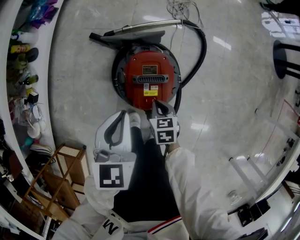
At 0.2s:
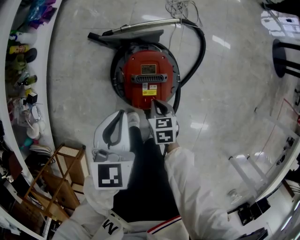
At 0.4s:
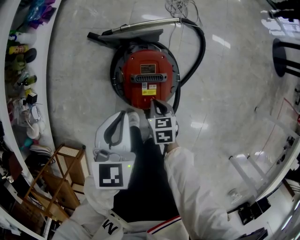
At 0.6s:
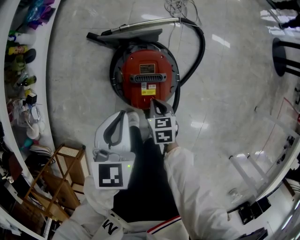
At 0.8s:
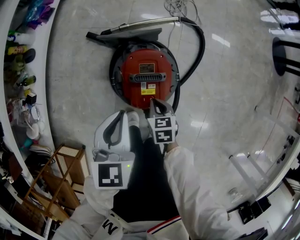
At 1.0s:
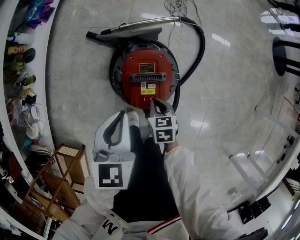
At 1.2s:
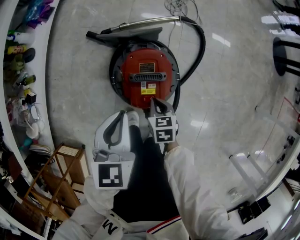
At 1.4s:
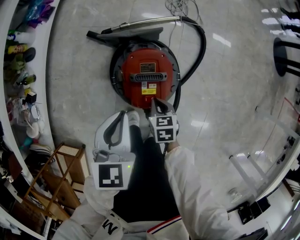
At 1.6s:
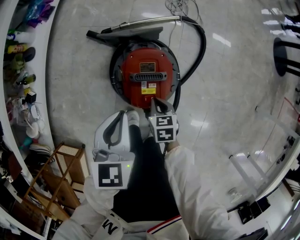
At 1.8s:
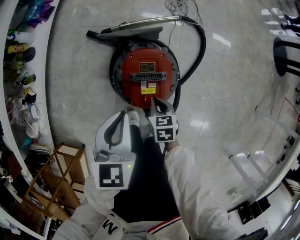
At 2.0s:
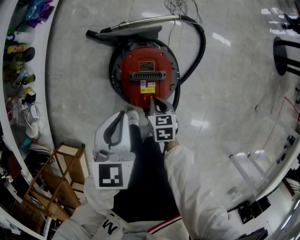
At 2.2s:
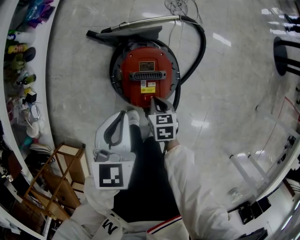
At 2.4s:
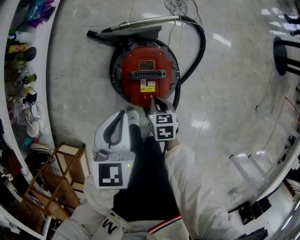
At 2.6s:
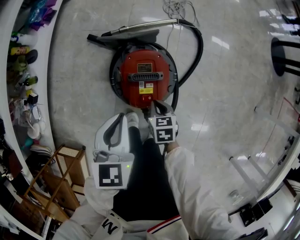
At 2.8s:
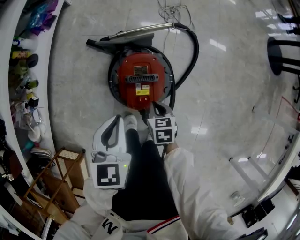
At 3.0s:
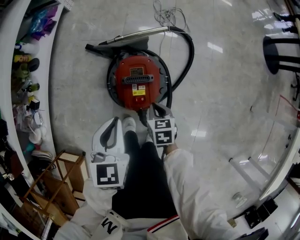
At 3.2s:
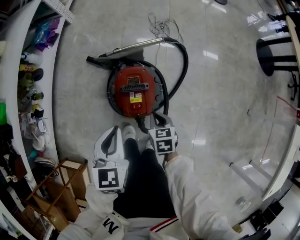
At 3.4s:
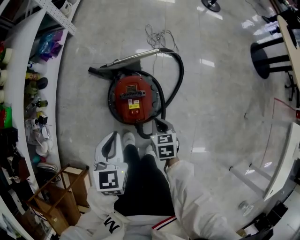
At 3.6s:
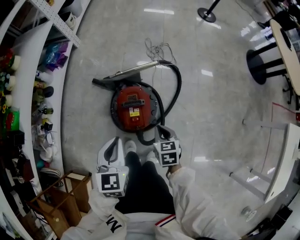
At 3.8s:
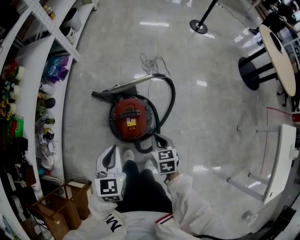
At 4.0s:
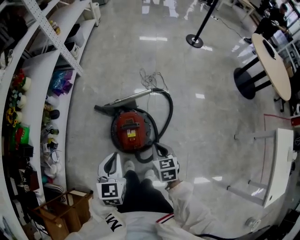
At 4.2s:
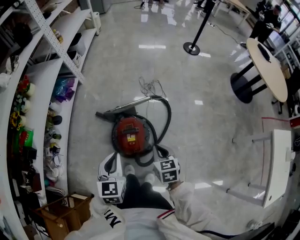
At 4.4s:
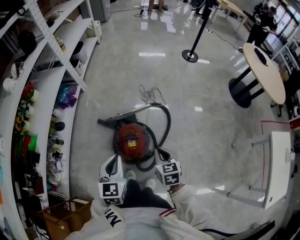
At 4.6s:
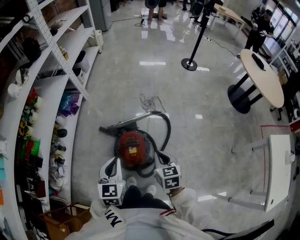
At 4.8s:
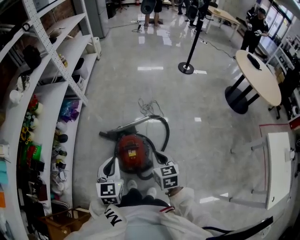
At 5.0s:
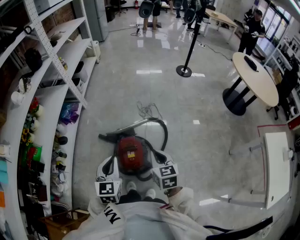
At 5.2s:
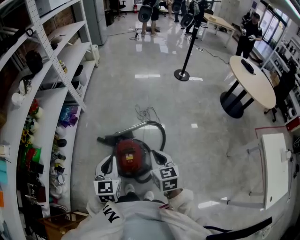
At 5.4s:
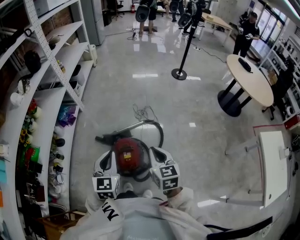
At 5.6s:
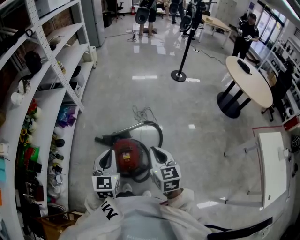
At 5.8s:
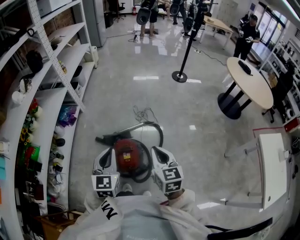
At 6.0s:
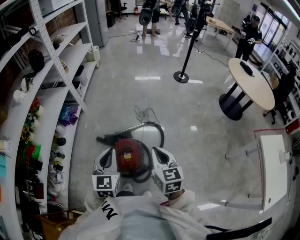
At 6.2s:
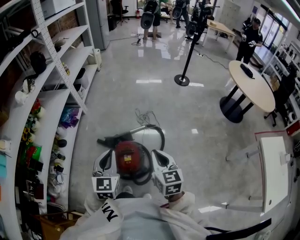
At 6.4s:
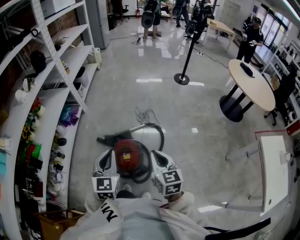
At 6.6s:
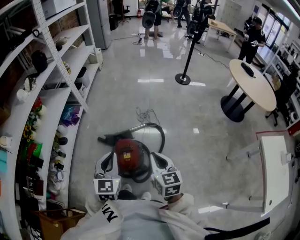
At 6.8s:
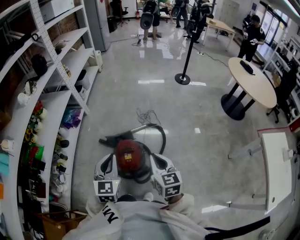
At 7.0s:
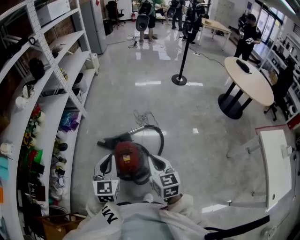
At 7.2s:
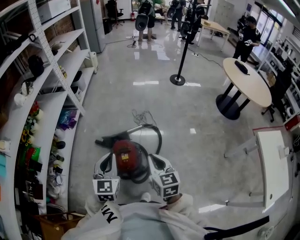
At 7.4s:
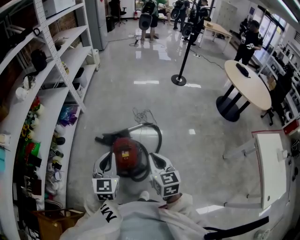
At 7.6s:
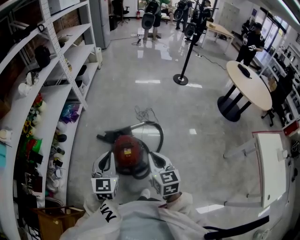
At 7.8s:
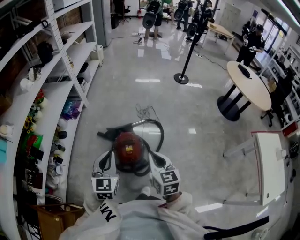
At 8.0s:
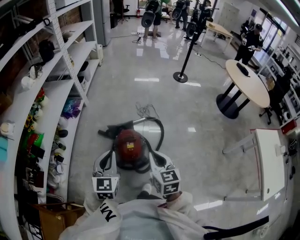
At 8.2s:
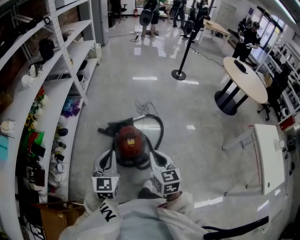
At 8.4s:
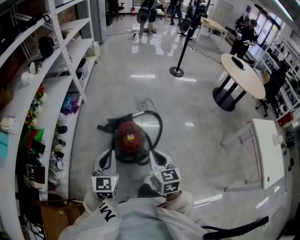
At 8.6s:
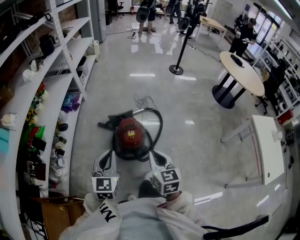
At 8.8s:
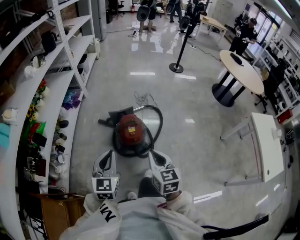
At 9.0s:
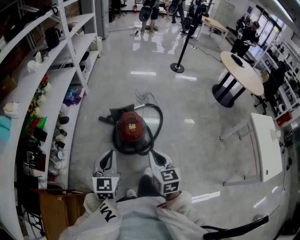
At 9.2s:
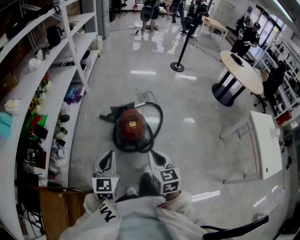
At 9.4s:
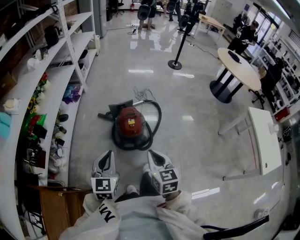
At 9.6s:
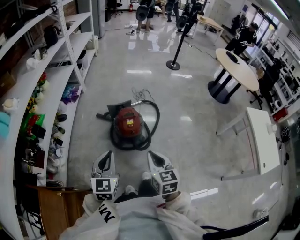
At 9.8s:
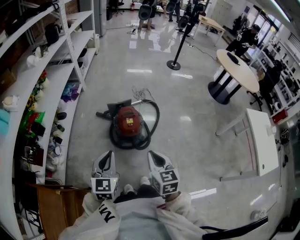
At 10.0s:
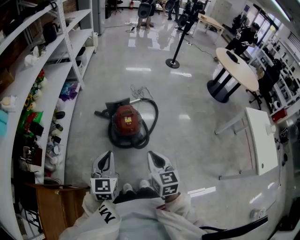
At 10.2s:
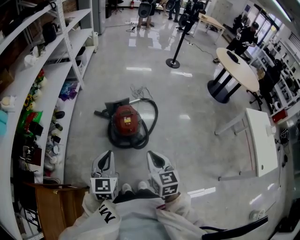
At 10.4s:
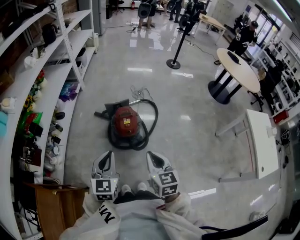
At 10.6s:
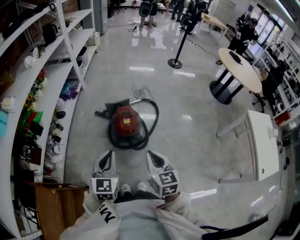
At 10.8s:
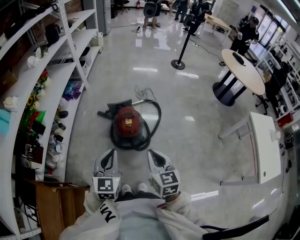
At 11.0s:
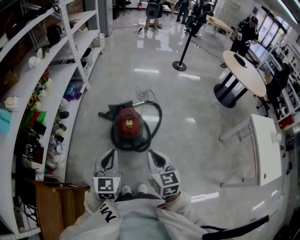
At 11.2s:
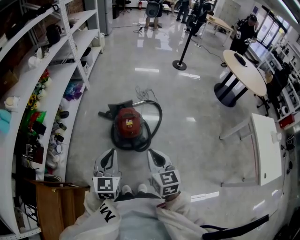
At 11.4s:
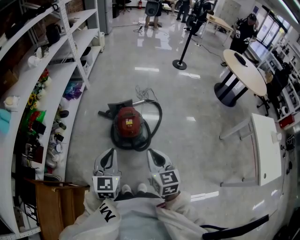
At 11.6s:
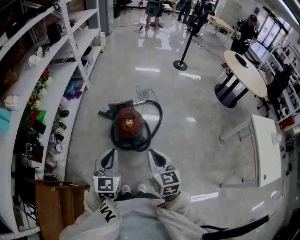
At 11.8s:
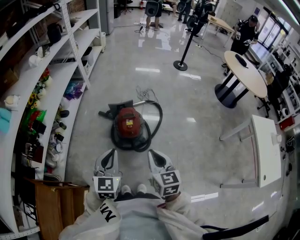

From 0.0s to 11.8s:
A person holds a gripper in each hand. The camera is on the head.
From 0.0s to 1.4s: Neither gripper changes place.
From 1.4s to 3.0s: The right gripper moves about 5 cm.
From 3.0s to 4.4s: The left gripper goes some 20 cm upward. Meanwhile the right gripper heads upward, covering approximately 30 cm.
From 4.4s to 6.0s: The right gripper heads upward, covering some 15 cm; the left gripper goes roughly 10 cm upward.
From 6.0s to 7.4s: The right gripper heads backward, covering roughly 5 cm.
From 7.4s to 8.8s: The two grippers go about 20 cm backward and to the left.
From 8.8s to 10.4s: The grippers both shift backward by some 5 cm.
From 10.4s to 11.8s: The grippers make only small movements.

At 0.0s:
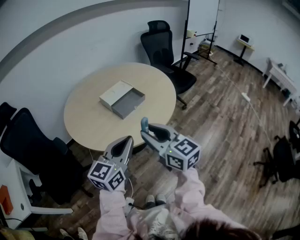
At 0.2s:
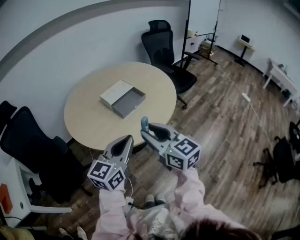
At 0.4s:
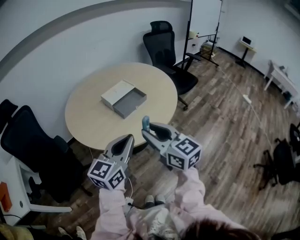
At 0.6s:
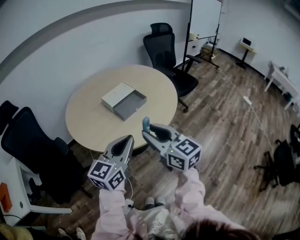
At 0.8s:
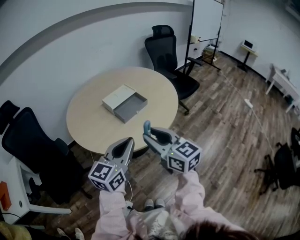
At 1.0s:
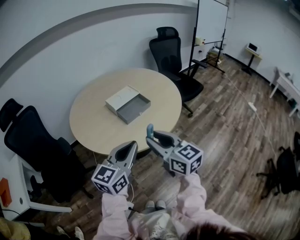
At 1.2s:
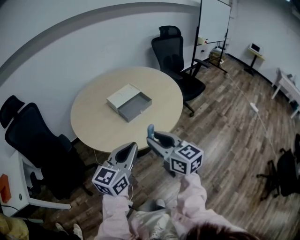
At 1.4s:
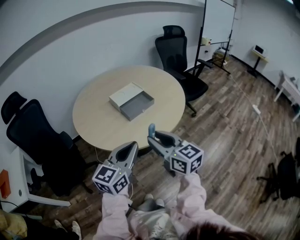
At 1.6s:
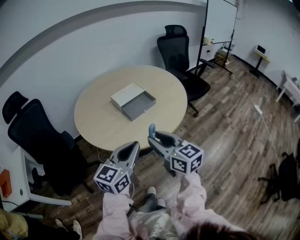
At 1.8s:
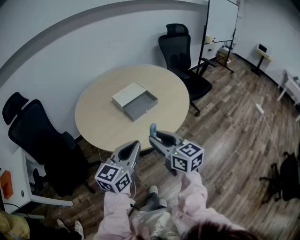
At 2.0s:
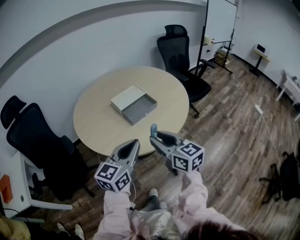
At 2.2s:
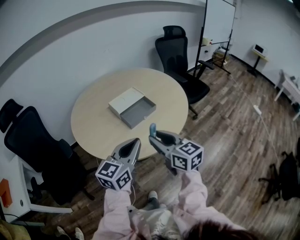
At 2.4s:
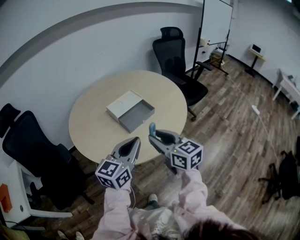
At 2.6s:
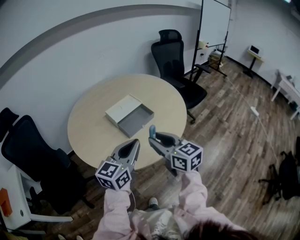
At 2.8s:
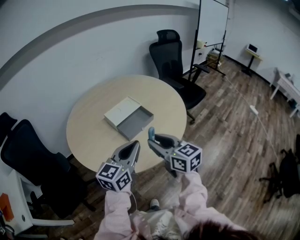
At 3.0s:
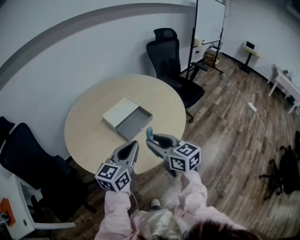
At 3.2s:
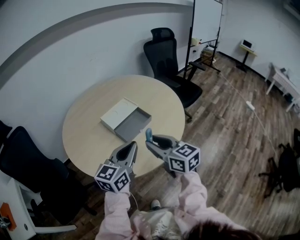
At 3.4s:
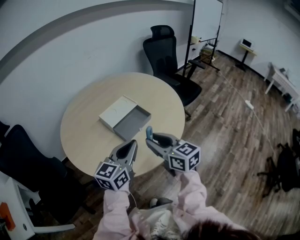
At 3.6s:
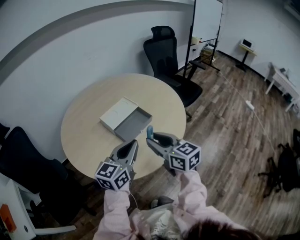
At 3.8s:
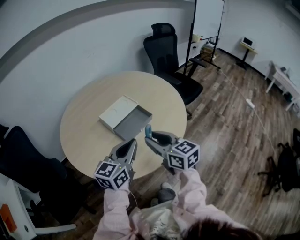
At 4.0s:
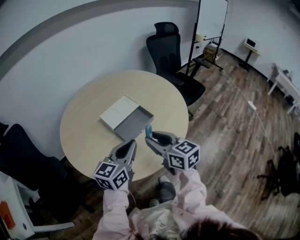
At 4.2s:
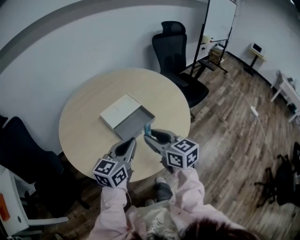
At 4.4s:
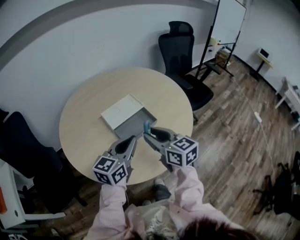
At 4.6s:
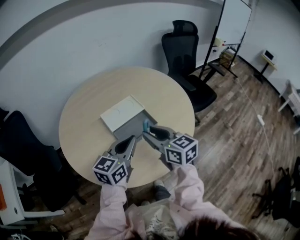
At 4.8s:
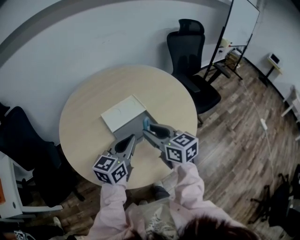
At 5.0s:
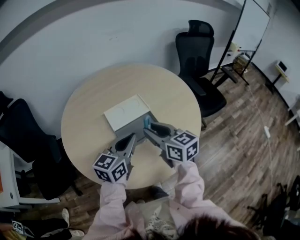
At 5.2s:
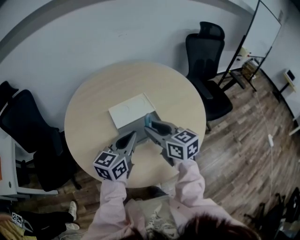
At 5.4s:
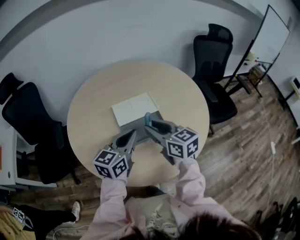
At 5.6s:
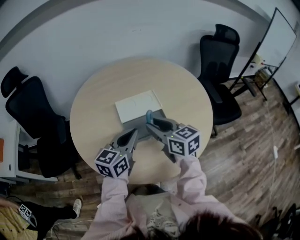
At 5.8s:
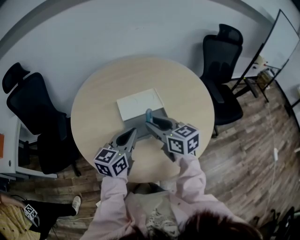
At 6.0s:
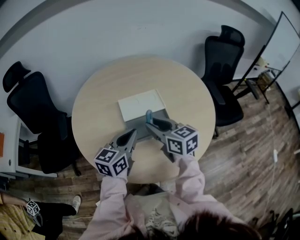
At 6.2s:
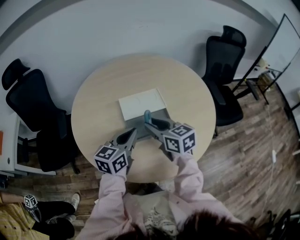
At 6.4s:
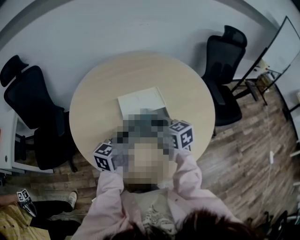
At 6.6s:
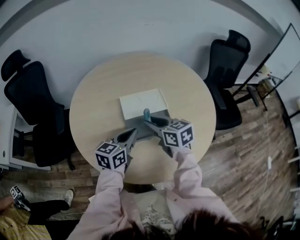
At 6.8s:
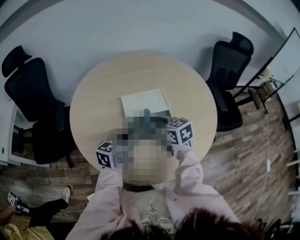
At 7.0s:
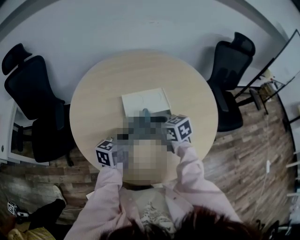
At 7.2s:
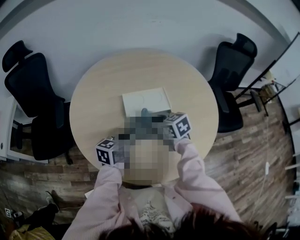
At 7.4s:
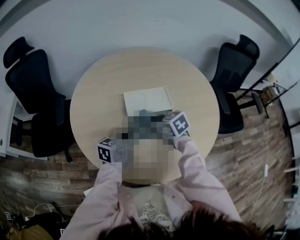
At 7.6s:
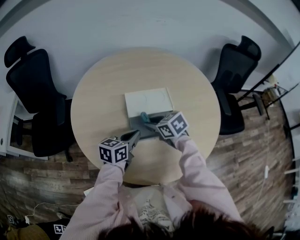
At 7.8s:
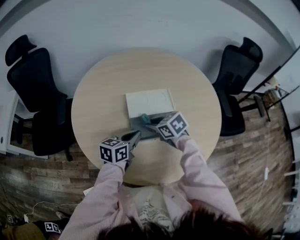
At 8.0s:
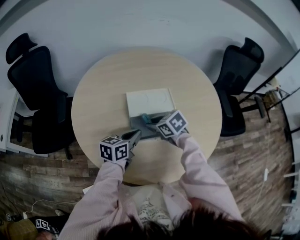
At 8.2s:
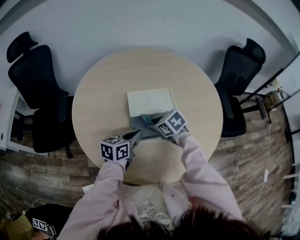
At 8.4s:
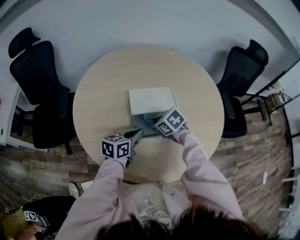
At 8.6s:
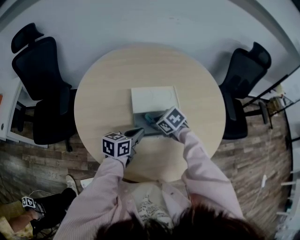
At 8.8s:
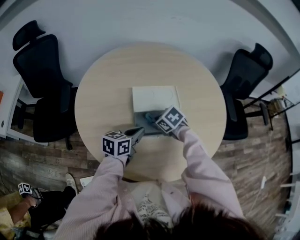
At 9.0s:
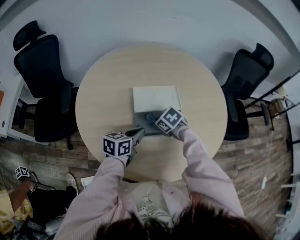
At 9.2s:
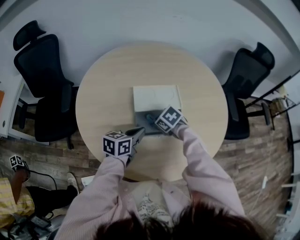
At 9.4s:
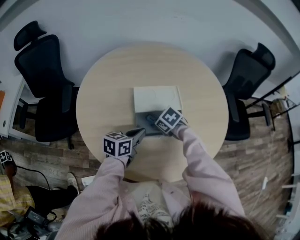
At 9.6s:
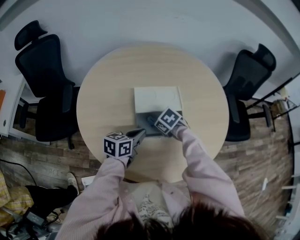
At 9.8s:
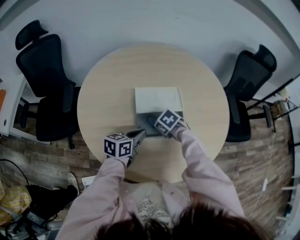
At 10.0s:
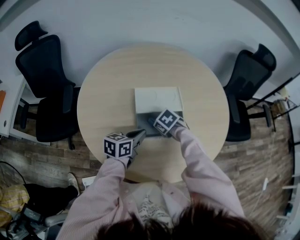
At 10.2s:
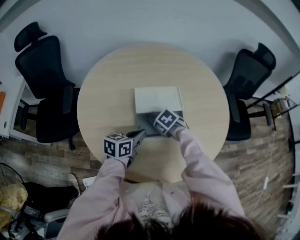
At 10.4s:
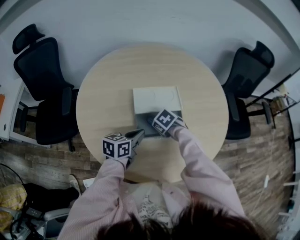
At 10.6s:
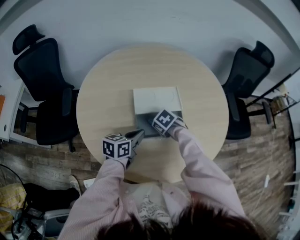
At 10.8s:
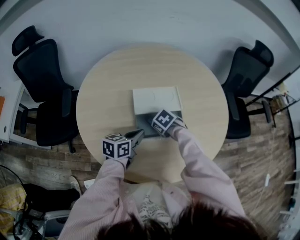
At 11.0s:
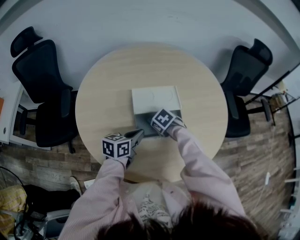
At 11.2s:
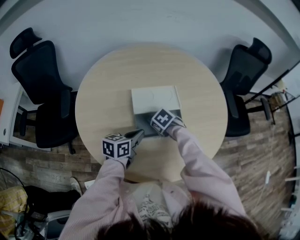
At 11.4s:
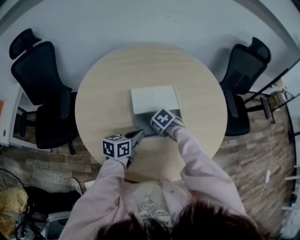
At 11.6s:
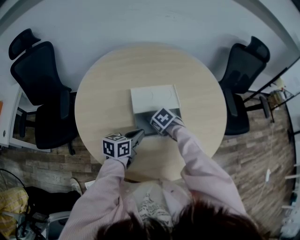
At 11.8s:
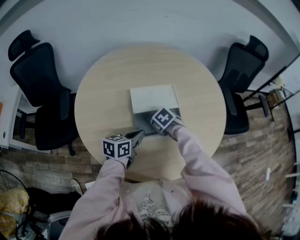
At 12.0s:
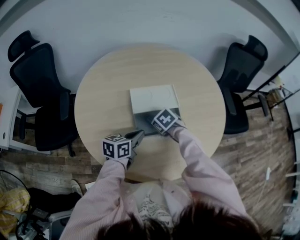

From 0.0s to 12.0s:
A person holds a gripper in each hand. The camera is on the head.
From 0.0s to 1.6s: There are only small adjustments of the grippers.
From 1.6s to 3.0s: The two grippers go about 15 cm forward.
From 3.0s to 4.4s: Both grippers travel together forward, some 10 cm.
From 4.4s to 6.0s: The grippers both shift forward by about 10 cm. The right gripper swivels some 20 degrees, while the left gripper rotates some 20 degrees.
From 6.0s to 7.6s: The left gripper travels downward by approximately 10 cm; the right gripper moves downward and forward, about 15 cm, and changes its angle by roughly 30 degrees.
From 7.6s to 9.0s: The right gripper moves downward, approximately 5 cm, and changes its angle by roughly 20 degrees.
From 9.0s to 12.0s: The grippers move only a little.
